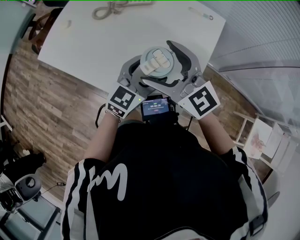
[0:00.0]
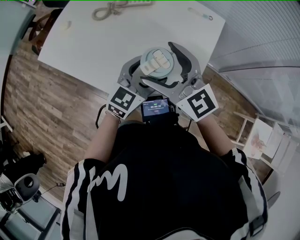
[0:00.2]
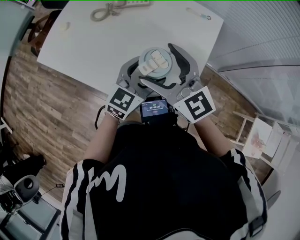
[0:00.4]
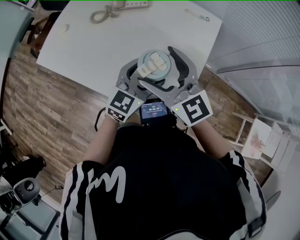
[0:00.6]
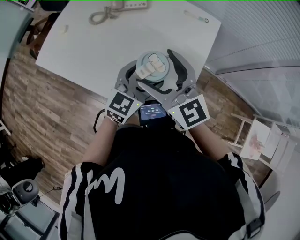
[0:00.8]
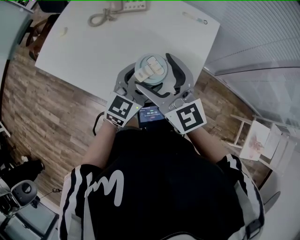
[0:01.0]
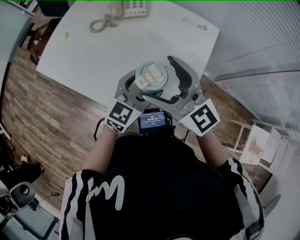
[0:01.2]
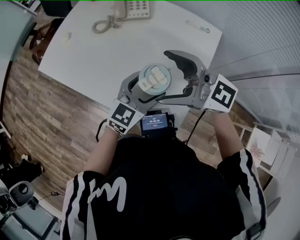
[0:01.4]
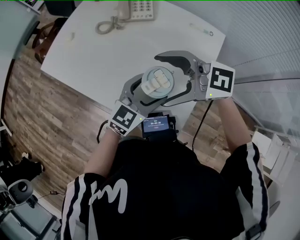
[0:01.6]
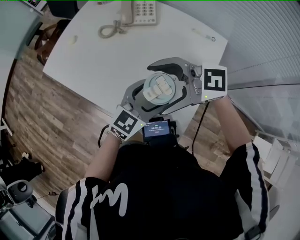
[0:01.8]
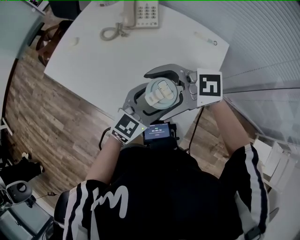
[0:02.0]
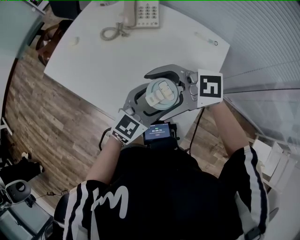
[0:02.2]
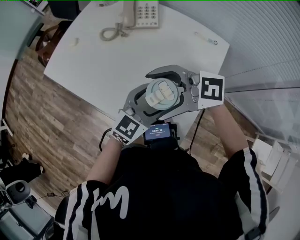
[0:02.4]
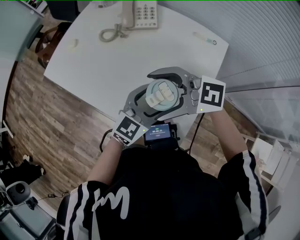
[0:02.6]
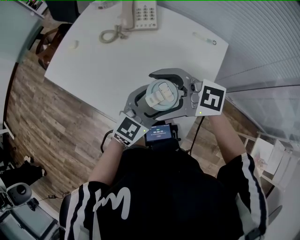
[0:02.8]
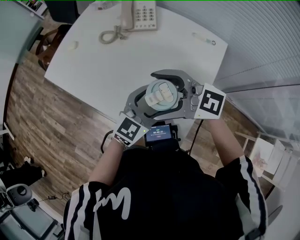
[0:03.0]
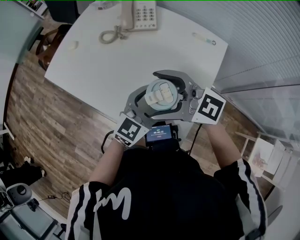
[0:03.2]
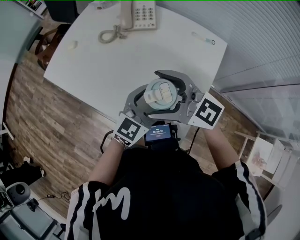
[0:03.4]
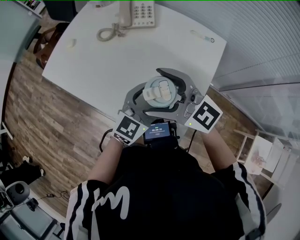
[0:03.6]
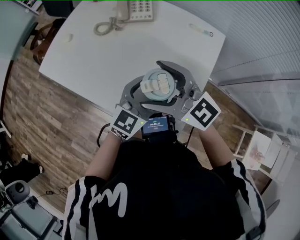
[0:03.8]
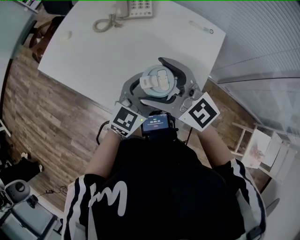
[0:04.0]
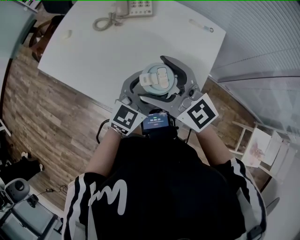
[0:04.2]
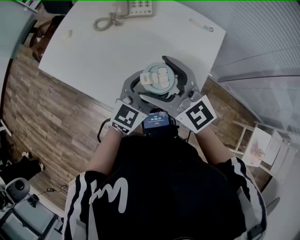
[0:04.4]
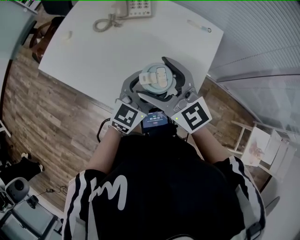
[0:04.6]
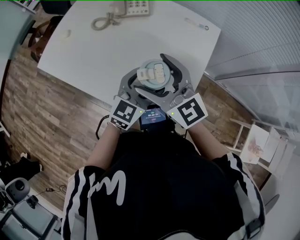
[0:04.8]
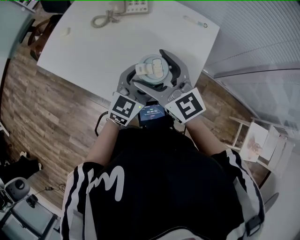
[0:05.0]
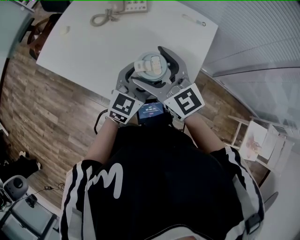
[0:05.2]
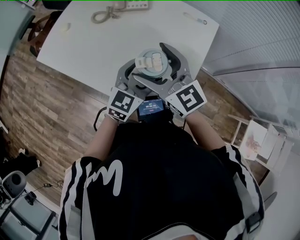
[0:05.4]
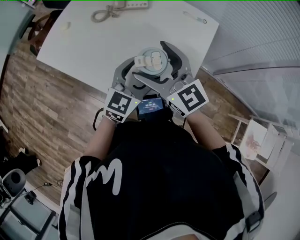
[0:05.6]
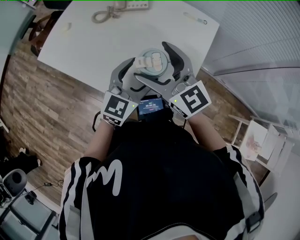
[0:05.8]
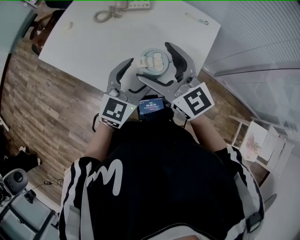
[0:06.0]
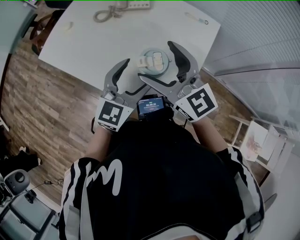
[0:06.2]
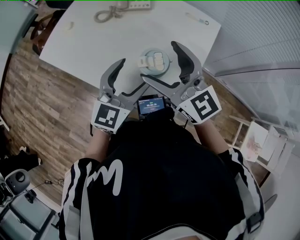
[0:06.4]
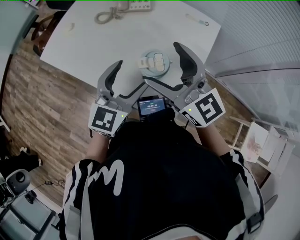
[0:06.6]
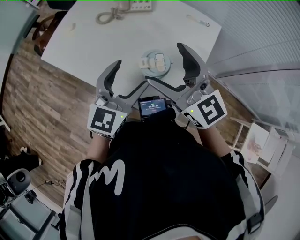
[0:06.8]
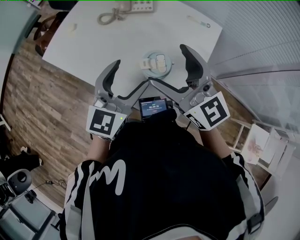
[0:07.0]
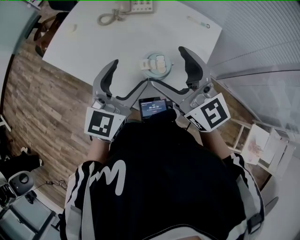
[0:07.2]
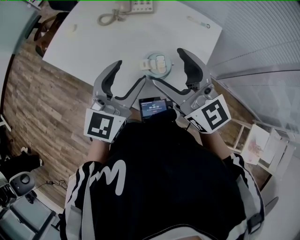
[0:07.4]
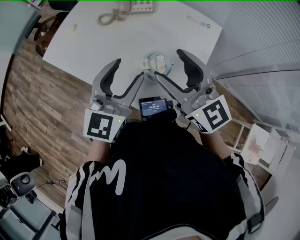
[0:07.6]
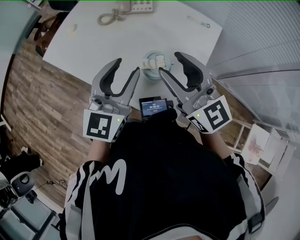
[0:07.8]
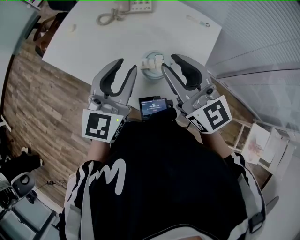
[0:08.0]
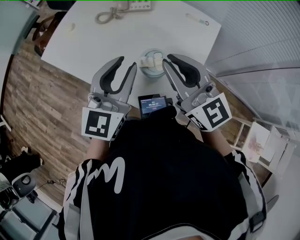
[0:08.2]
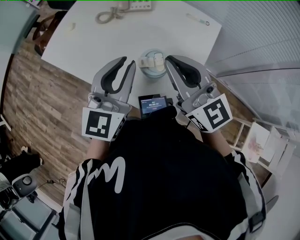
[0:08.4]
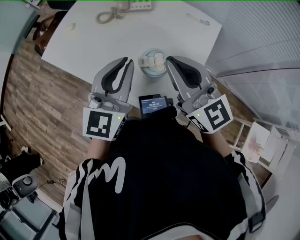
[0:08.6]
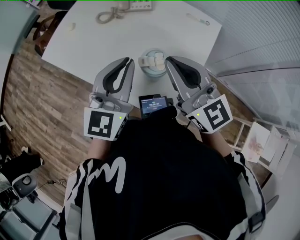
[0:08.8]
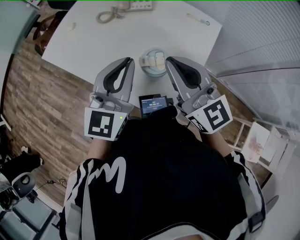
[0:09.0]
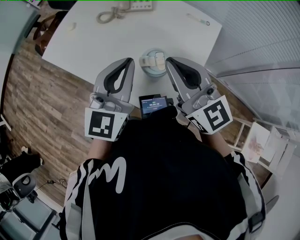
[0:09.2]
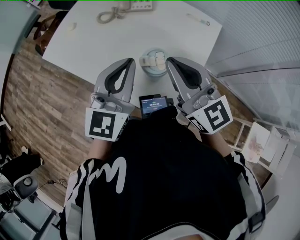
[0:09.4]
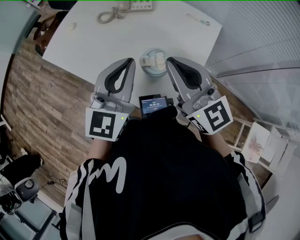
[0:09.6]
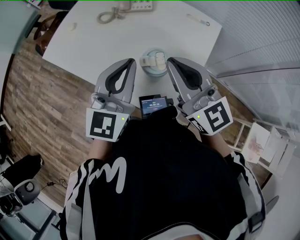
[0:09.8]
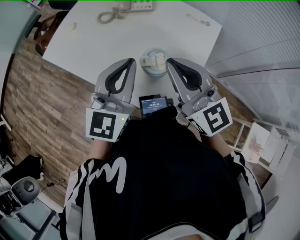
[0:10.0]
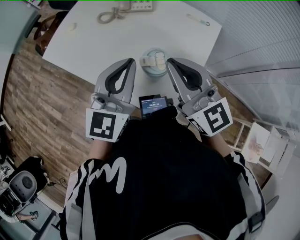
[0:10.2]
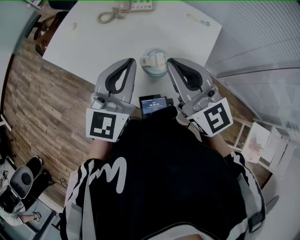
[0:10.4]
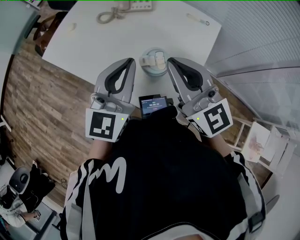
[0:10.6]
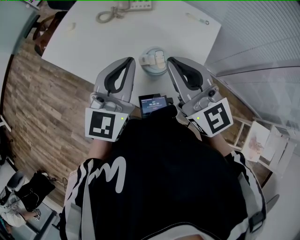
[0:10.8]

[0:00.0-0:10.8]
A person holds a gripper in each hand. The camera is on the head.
0:00.0 to 0:01.6: The right gripper swivels about 40 degrees.
0:01.6 to 0:03.0: The grippers stay close to where they were, moving slightly.
0:03.0 to 0:04.6: The right gripper rotates about 40 degrees.
0:04.6 to 0:06.2: The left gripper is displaced upward by some 5 cm.
0:06.2 to 0:07.8: The left gripper travels upward by approximately 10 cm, and closes. Meanwhile the right gripper closes up.
0:07.8 to 0:09.2: The left gripper closes. Meanwhile the right gripper closes its fingers.
0:09.2 to 0:10.8: The grippers move only a little.

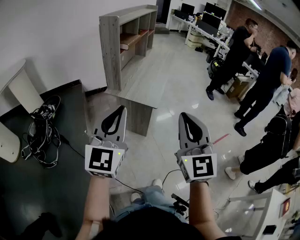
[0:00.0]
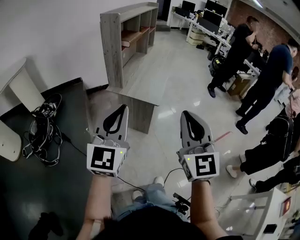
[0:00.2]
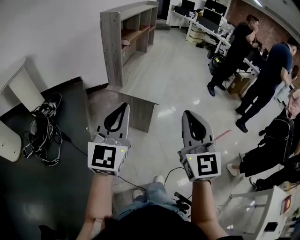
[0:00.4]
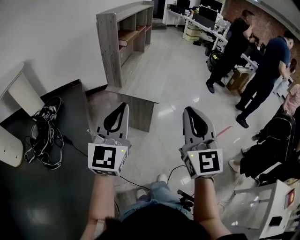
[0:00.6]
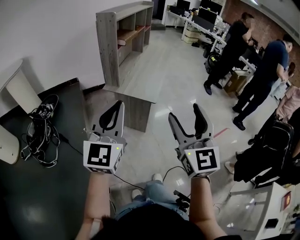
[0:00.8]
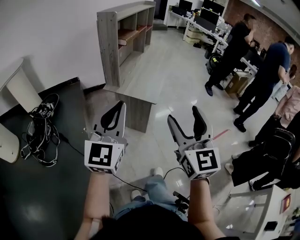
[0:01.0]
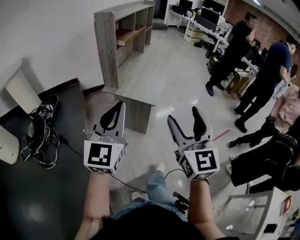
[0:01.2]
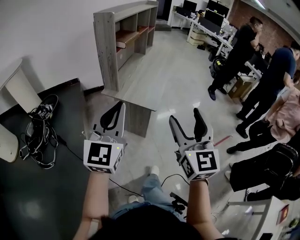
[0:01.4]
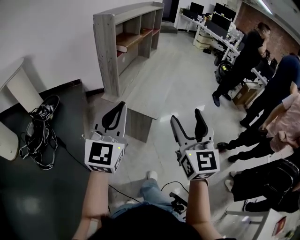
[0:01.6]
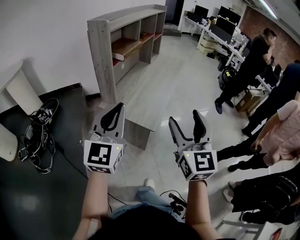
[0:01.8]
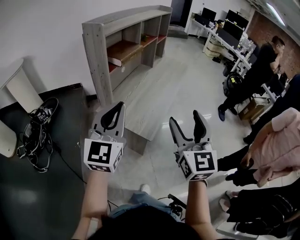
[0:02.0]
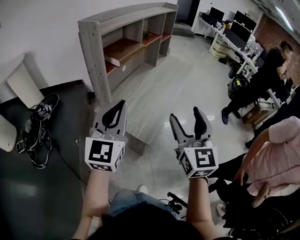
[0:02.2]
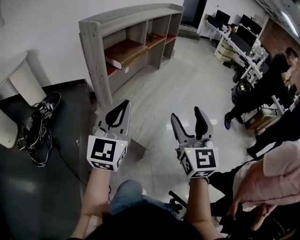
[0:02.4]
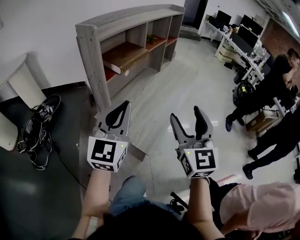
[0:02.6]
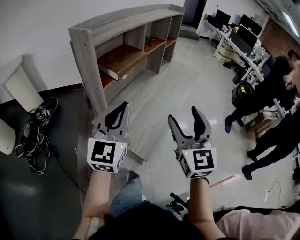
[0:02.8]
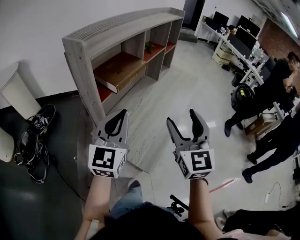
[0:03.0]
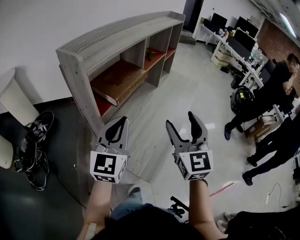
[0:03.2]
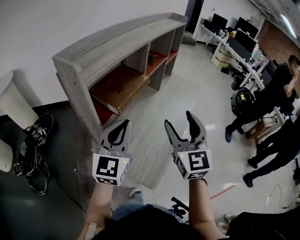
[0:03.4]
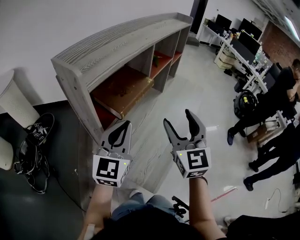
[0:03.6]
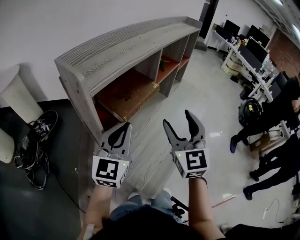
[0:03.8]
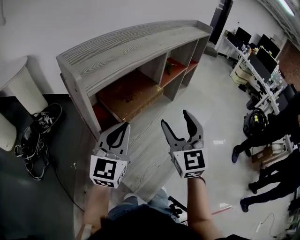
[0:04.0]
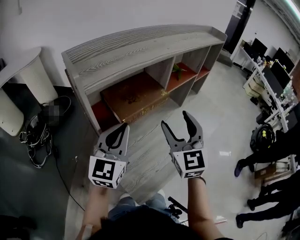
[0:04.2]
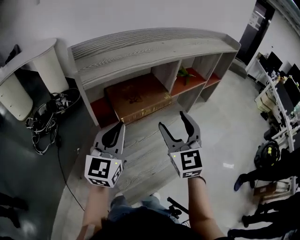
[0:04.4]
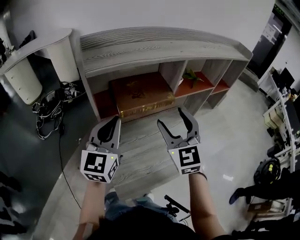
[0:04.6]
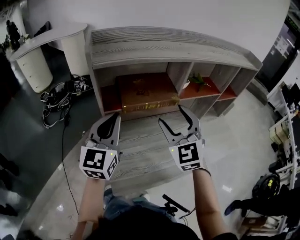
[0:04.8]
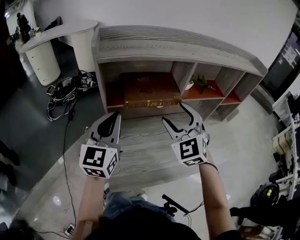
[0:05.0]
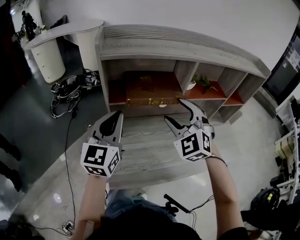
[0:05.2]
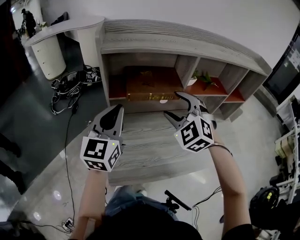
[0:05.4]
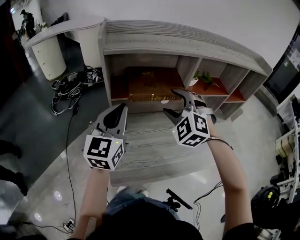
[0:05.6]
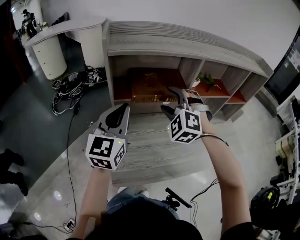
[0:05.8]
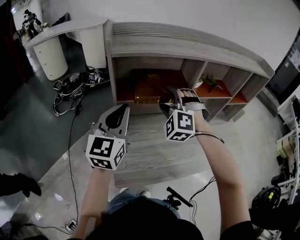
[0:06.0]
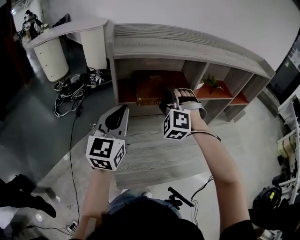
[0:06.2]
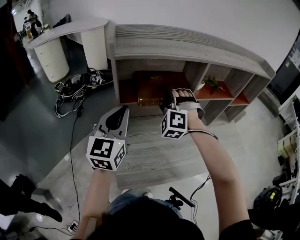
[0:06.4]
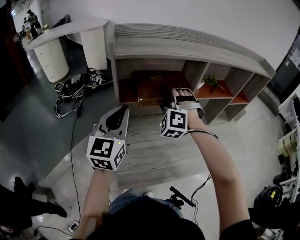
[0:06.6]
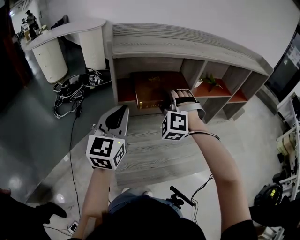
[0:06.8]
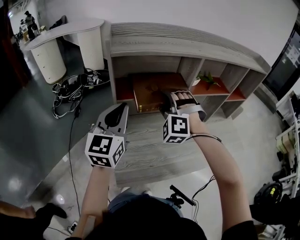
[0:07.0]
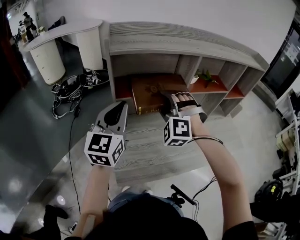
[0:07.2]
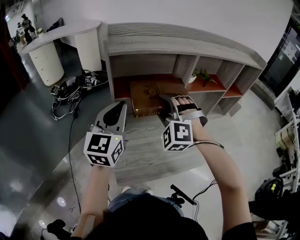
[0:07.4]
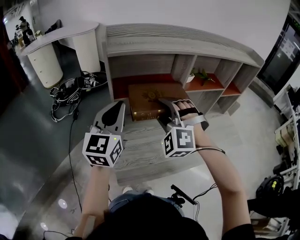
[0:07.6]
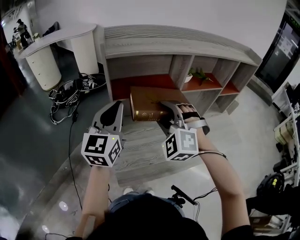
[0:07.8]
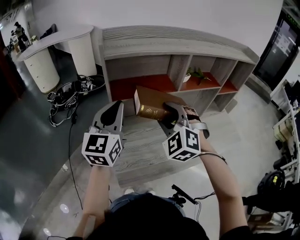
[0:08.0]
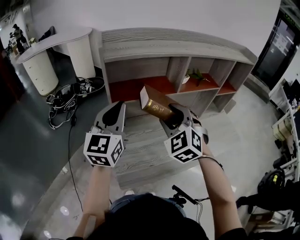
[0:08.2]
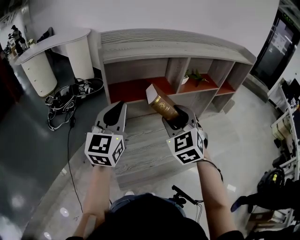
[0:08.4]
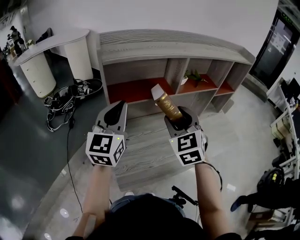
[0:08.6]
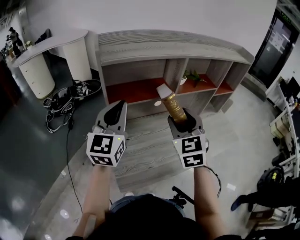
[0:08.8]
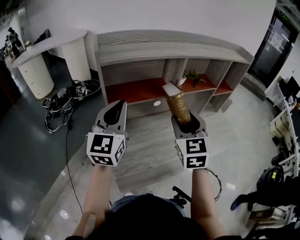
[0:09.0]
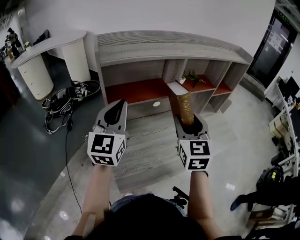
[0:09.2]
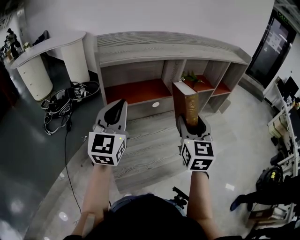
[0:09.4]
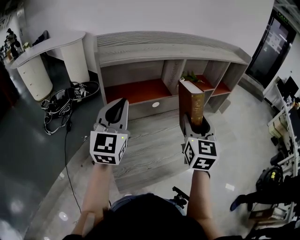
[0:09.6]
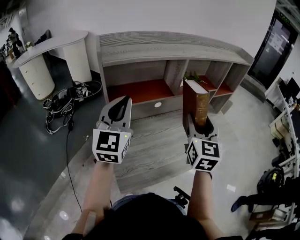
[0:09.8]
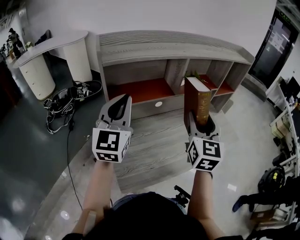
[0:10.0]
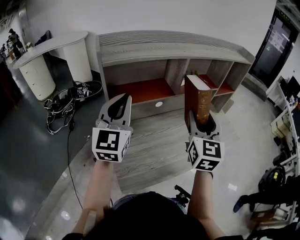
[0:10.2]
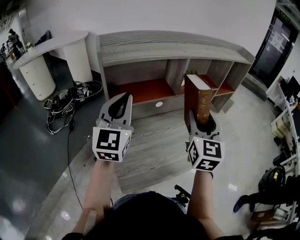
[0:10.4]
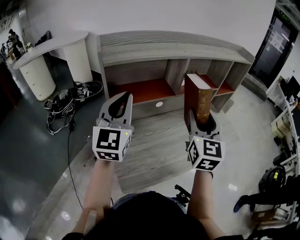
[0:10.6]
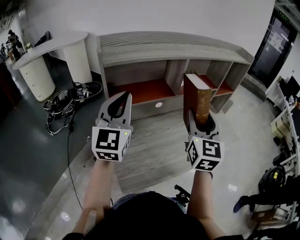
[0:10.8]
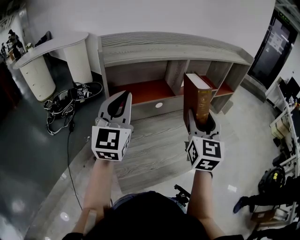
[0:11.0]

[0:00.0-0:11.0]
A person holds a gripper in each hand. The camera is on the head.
0:00.0 to 0:01.6: The two grippers go approximately 15 cm forward. The right gripper opens.
0:01.6 to 0:03.2: Both grippers travel together forward, roughly 40 cm.
0:03.2 to 0:04.8: The right gripper ends up approximately 20 cm from where it was, and swivels approximately 50 degrees. The left gripper ends up some 5 cm from where it was, and turns by about 40 degrees.
0:04.8 to 0:06.2: The right gripper travels forward and to the left by roughly 10 cm, and twists about 50 degrees counterclockwise, seen from behind.
0:06.2 to 0:07.8: The right gripper is displaced backward by some 10 cm.
0:07.8 to 0:09.4: The right gripper shifts about 10 cm to the right, and twists about 70 degrees clockwise, seen from behind.
0:09.4 to 0:11.0: There are only small adjustments of the grippers.

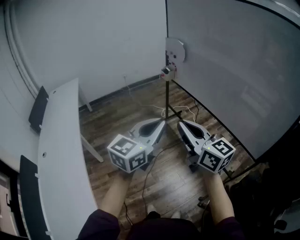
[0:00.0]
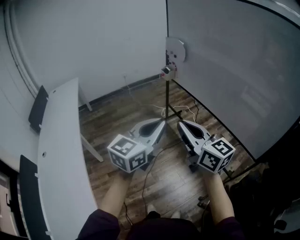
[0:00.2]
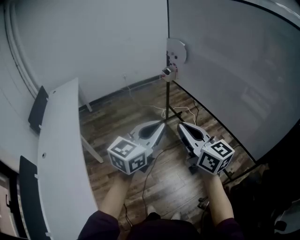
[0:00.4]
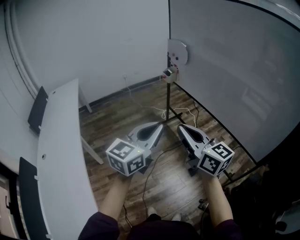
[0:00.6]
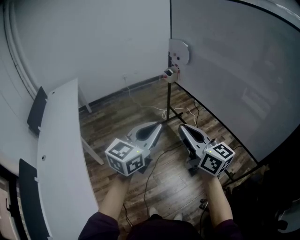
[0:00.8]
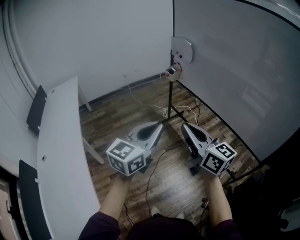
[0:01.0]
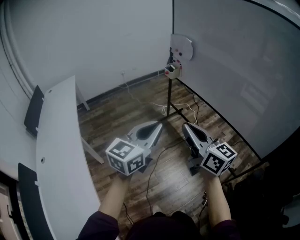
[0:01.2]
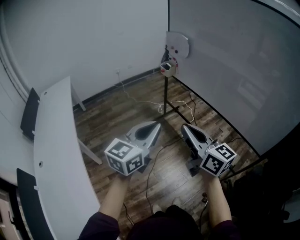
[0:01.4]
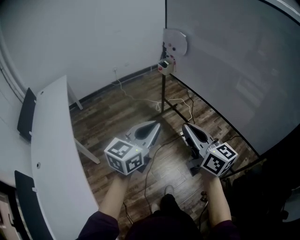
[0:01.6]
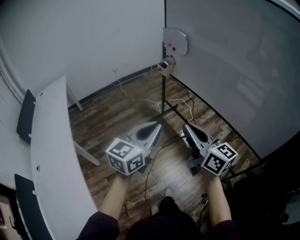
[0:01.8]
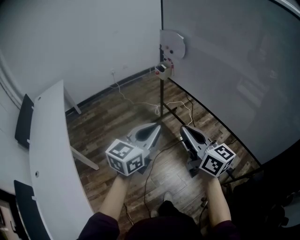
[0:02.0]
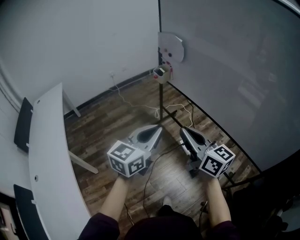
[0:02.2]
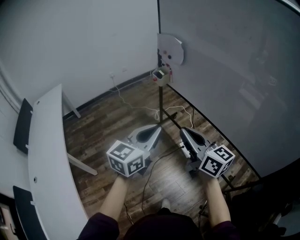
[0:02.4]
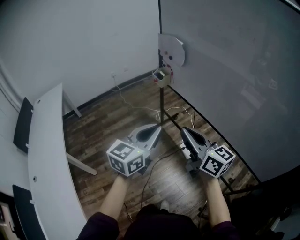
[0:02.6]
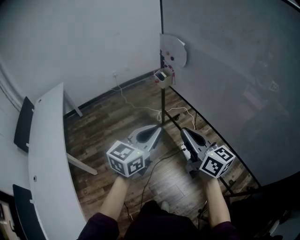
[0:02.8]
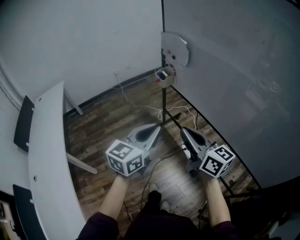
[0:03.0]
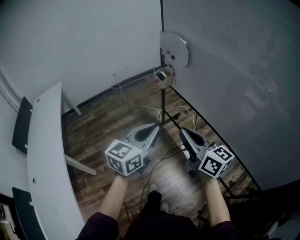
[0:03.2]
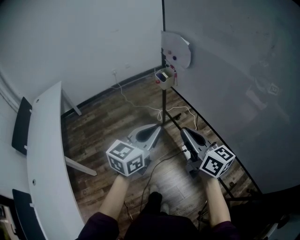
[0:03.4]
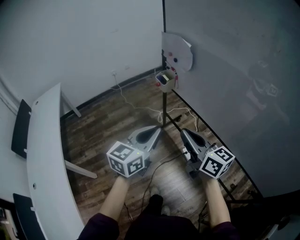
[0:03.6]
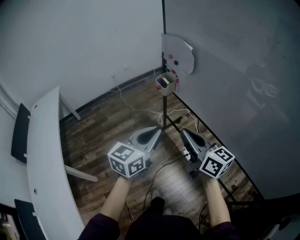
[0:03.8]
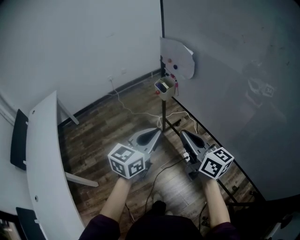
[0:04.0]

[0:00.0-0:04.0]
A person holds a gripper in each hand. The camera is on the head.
0:00.0 to 0:01.4: The two grippers go roughly 10 cm to the left and forward.
0:01.4 to 0:02.6: The left gripper travels forward and to the right by some 20 cm, while the right gripper goes roughly 20 cm forward.
0:02.6 to 0:04.0: Both grippers move forward, approximately 20 cm.
